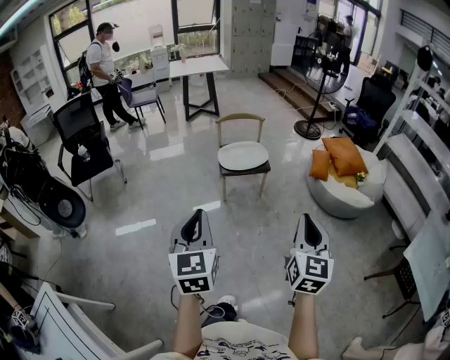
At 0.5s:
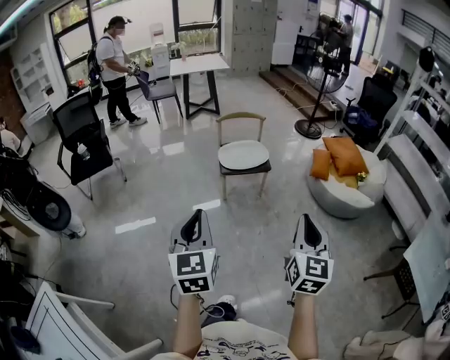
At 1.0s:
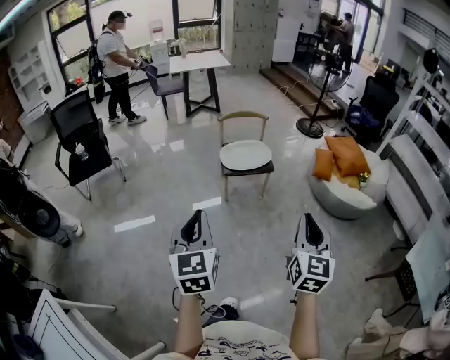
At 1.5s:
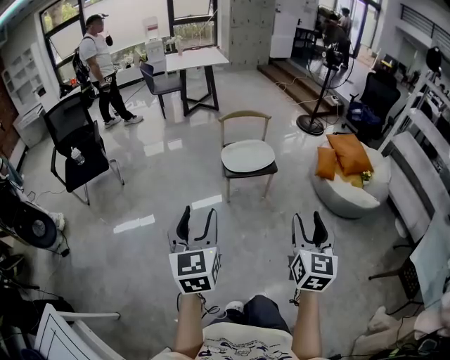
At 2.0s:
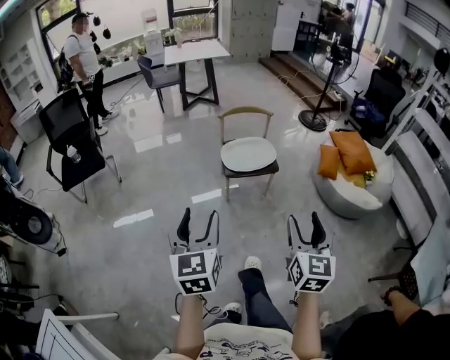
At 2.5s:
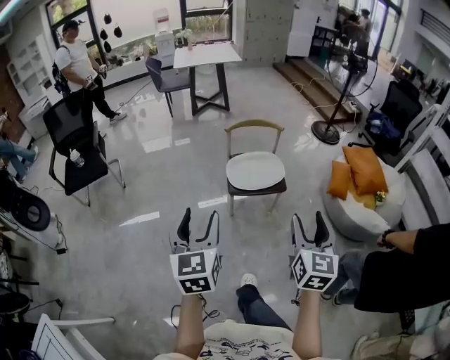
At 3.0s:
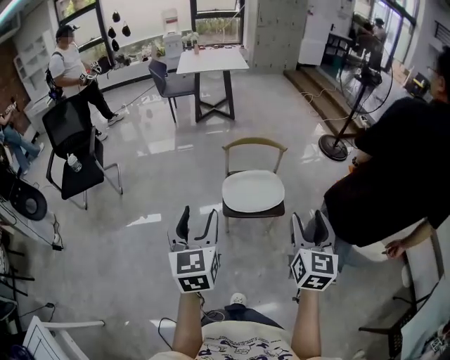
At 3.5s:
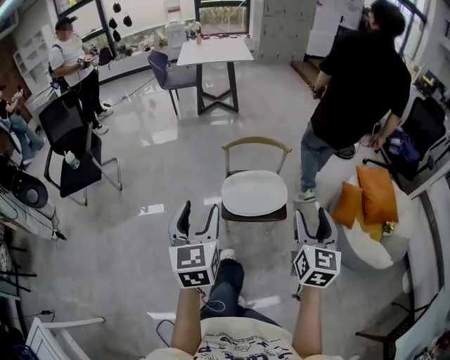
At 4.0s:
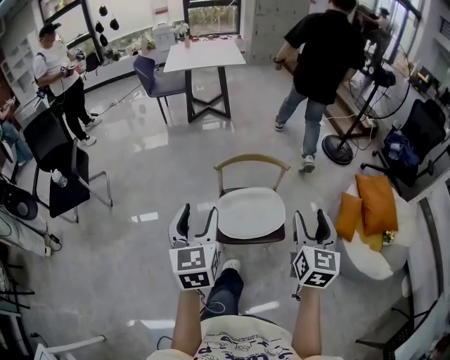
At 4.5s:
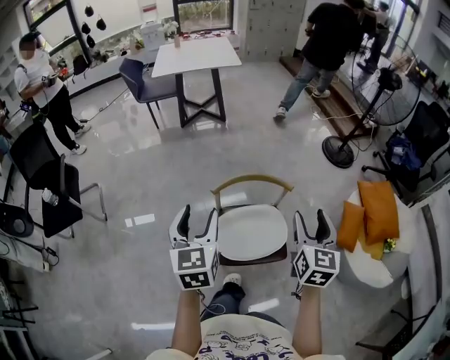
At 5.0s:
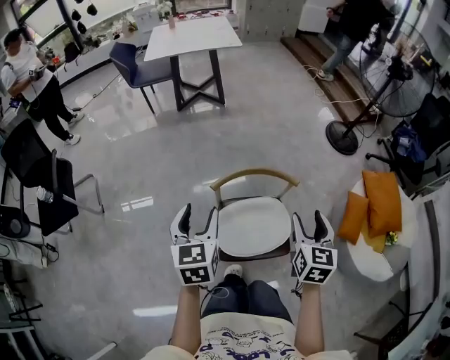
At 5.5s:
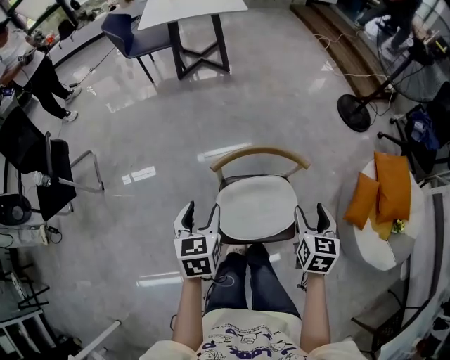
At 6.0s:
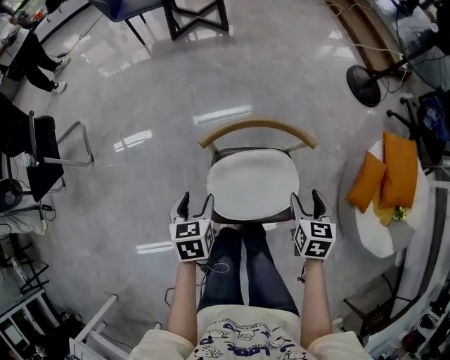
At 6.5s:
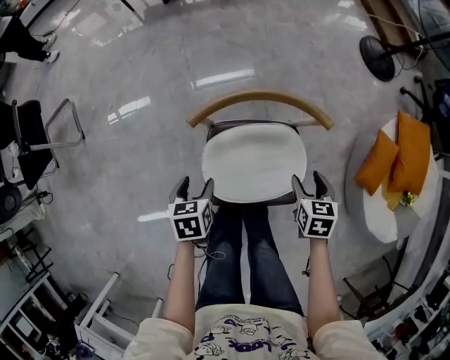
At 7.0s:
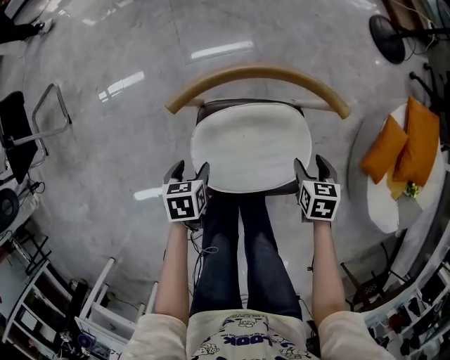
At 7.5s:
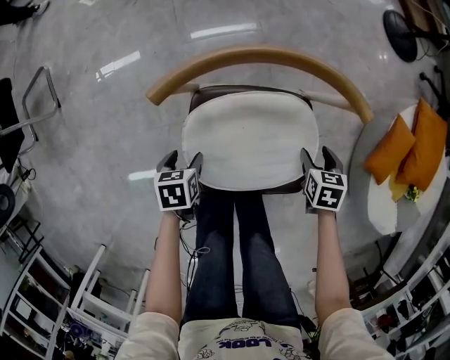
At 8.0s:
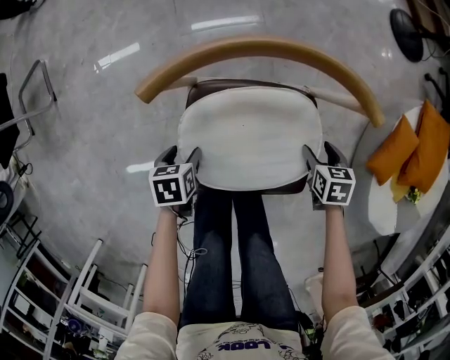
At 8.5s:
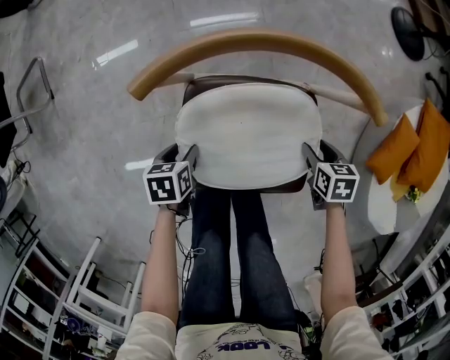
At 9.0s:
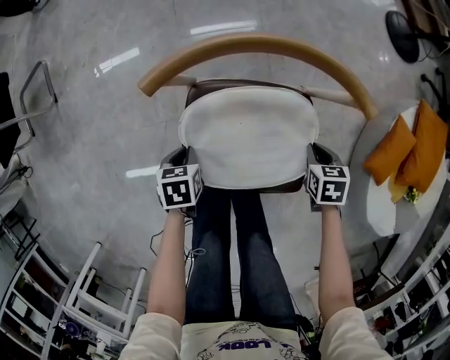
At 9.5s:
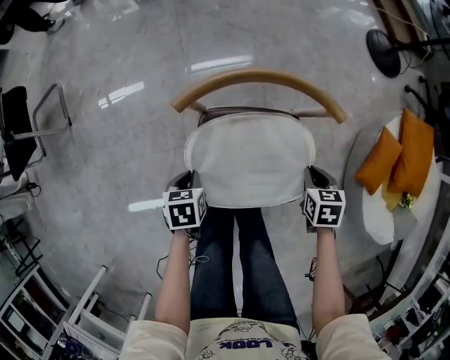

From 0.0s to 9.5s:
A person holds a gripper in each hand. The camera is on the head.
From 0.0s to 2.0s: The right gripper is displaced forward and to the left by about 25 cm, and opens. The left gripper moves forward, roughly 25 cm, and opens.
From 2.0s to 4.0s: Both grippers are carried forward, about 80 cm.
From 4.0s to 5.5s: Both grippers move forward and downward, some 40 cm. The left gripper rotates roughly 20 degrees. The right gripper rotates roughly 20 degrees.
From 5.5s to 7.5s: The grippers both shift downward by roughly 60 cm. The left gripper angles its fingers downward, by some 30 degrees; the right gripper angles its fingers downward, by approximately 30 degrees.
From 7.5s to 9.5s: The two grippers go about 15 cm upward. The right gripper closes up. The left gripper closes up.

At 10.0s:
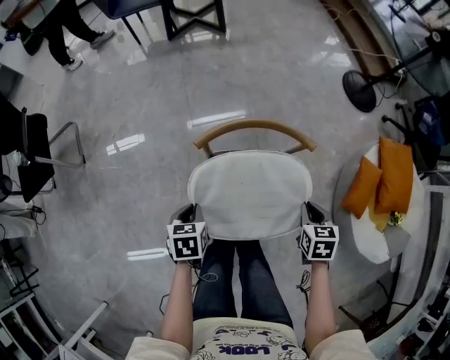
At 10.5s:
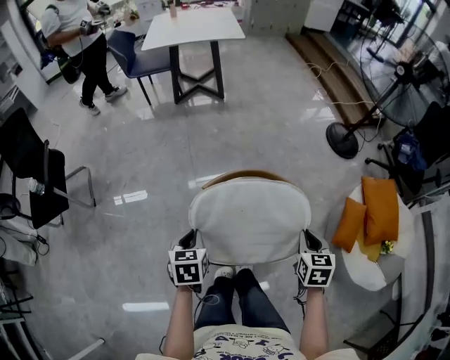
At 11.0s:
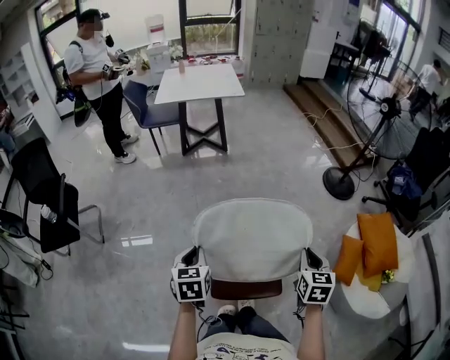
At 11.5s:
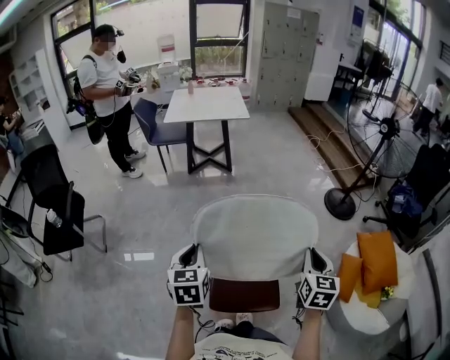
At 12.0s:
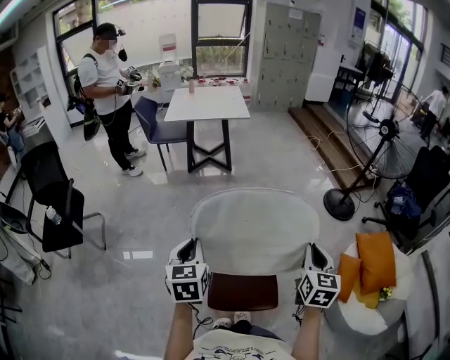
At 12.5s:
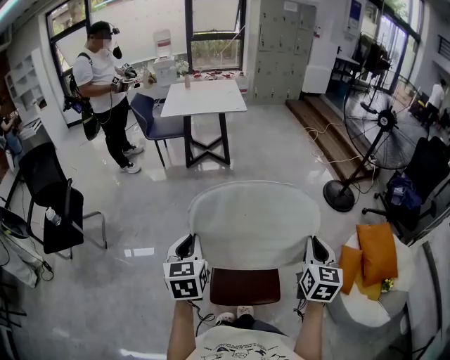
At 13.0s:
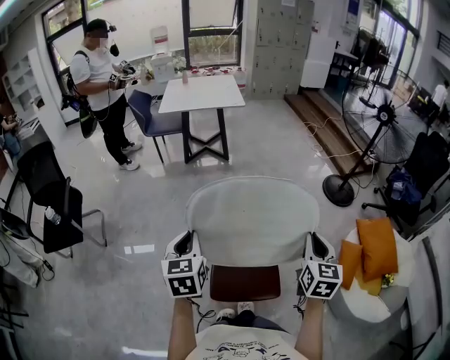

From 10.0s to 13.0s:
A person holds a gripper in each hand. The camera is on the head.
From 10.0s to 11.5s: The two grippers go about 40 cm upward. The right gripper tilts its fingers approximately 40 degrees upward; the left gripper tips its fingers upward by roughly 30 degrees.
From 11.5s to 13.0s: The grippers move only a little.

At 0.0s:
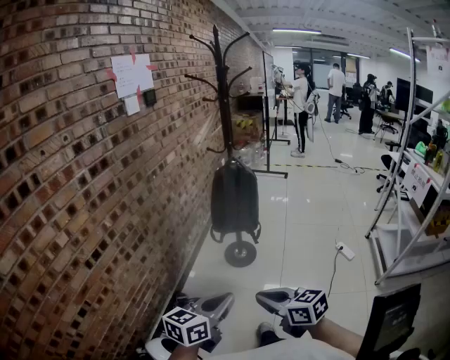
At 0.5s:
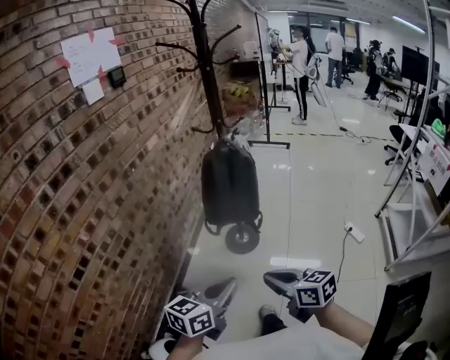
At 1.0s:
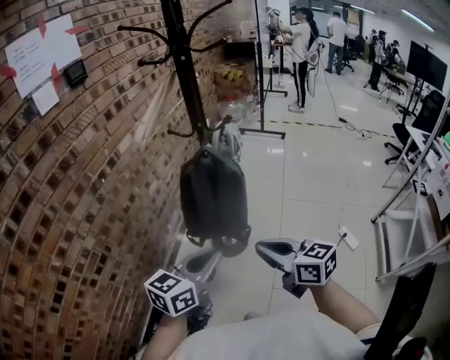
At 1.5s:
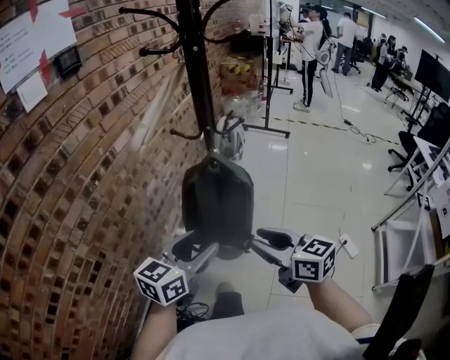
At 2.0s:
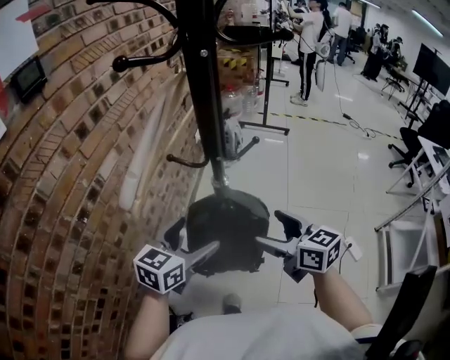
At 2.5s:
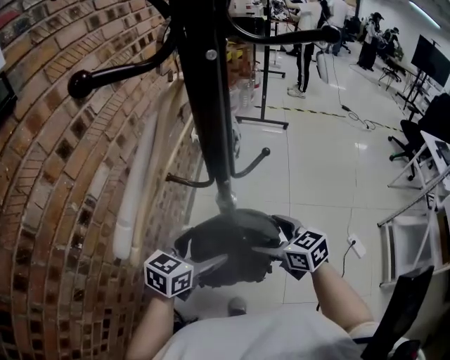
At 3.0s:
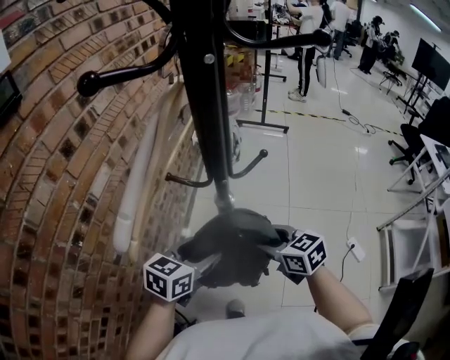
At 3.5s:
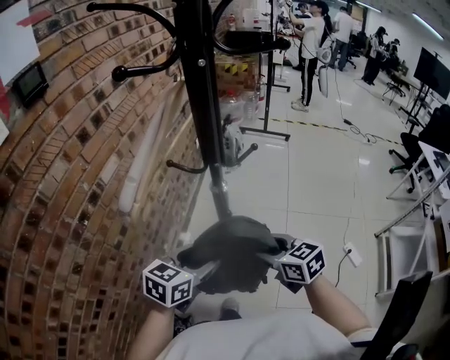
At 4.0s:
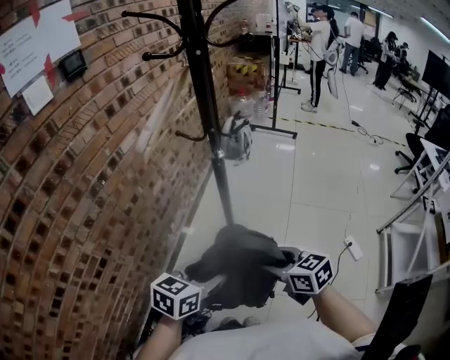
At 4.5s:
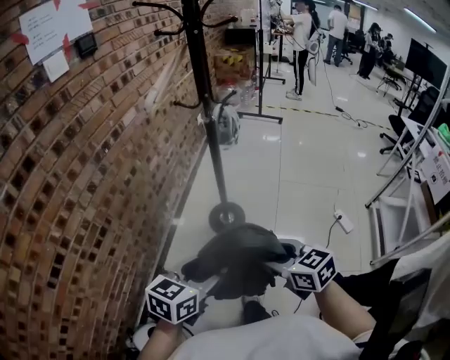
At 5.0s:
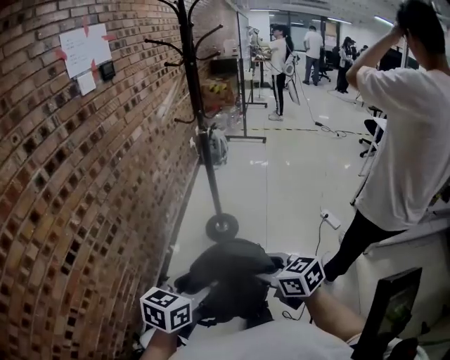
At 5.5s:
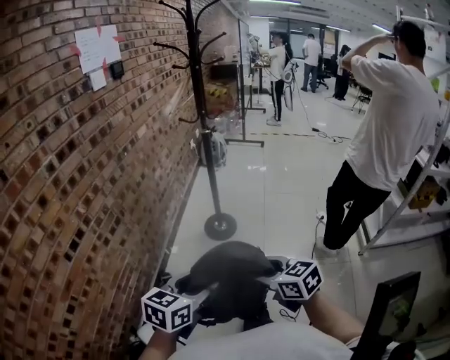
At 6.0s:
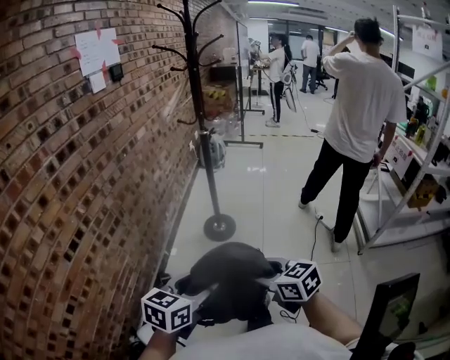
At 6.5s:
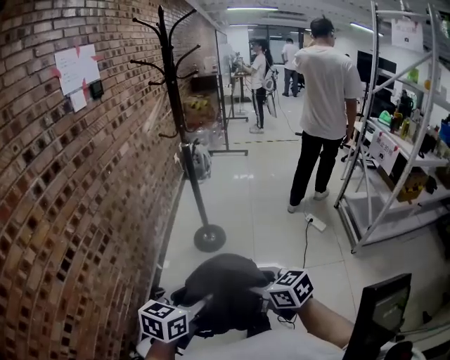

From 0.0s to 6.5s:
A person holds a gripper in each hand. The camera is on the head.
From 0.0s to 2.0s: The two grippers travel together, forward, roughly 70 cm. The right gripper opens, while the left gripper opens.
From 2.0s to 4.5s: Both grippers move backward, roughly 40 cm. The left gripper closes up, while the right gripper closes.
From 4.5s to 6.5s: The grippers both shift backward by about 25 cm.

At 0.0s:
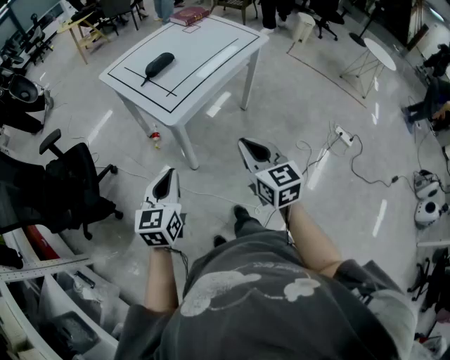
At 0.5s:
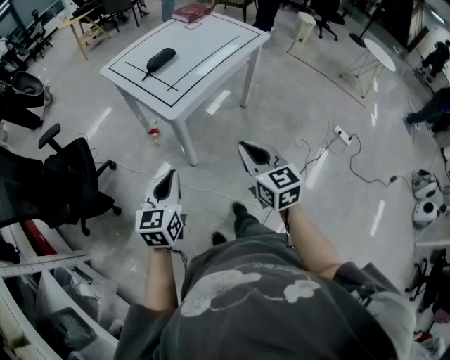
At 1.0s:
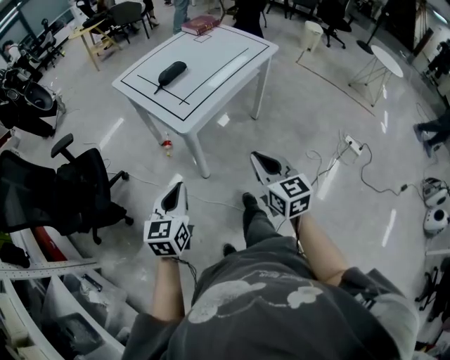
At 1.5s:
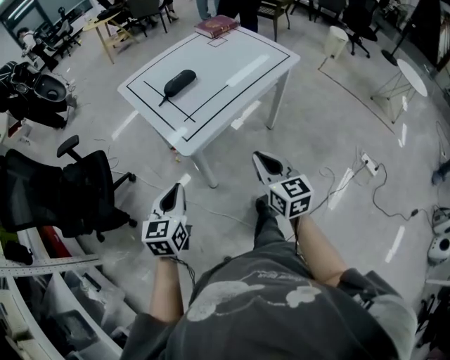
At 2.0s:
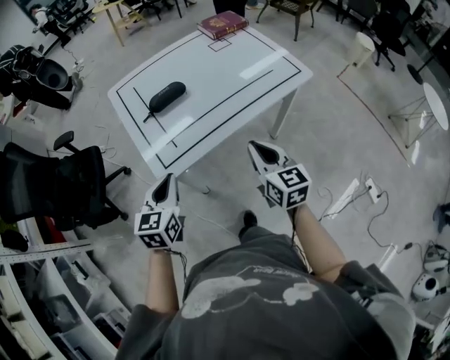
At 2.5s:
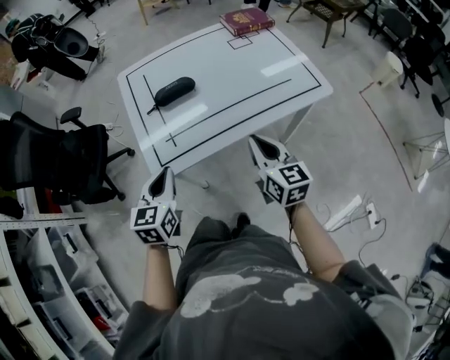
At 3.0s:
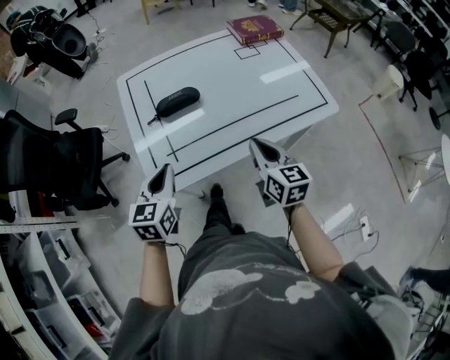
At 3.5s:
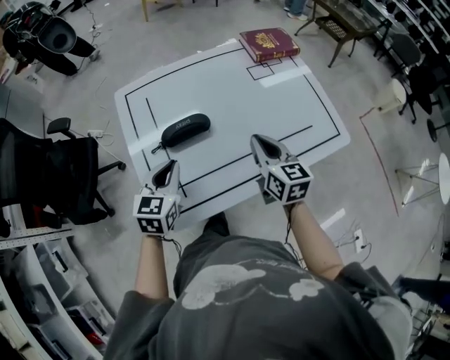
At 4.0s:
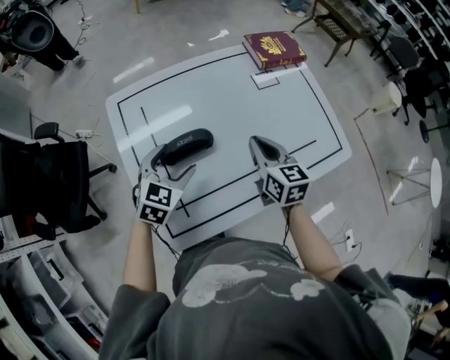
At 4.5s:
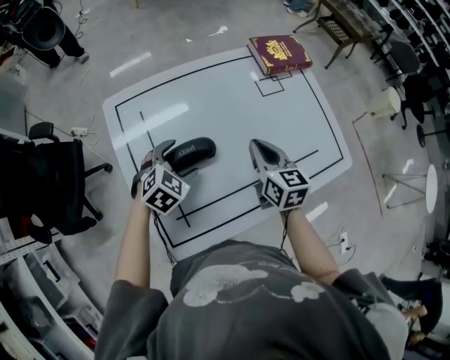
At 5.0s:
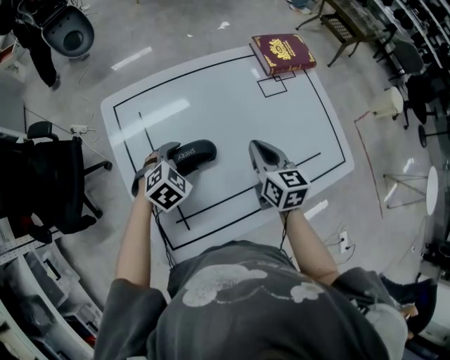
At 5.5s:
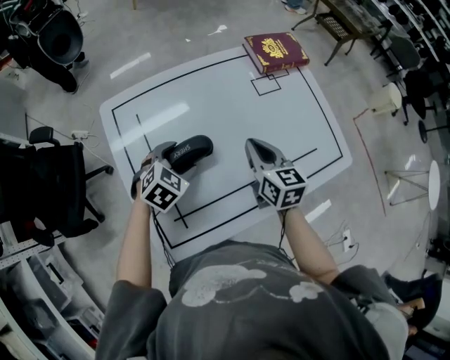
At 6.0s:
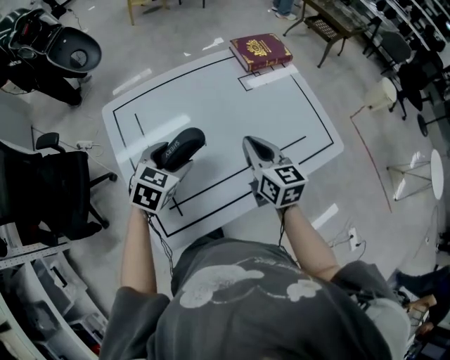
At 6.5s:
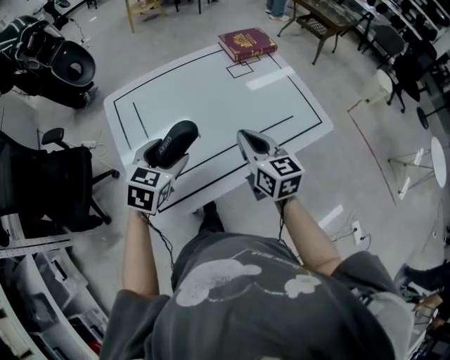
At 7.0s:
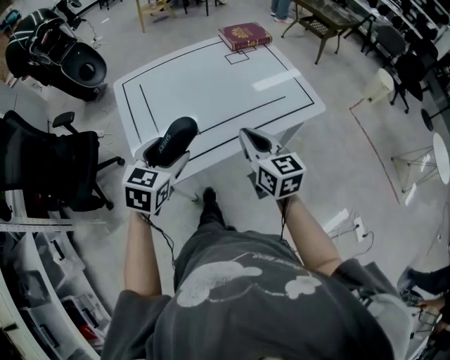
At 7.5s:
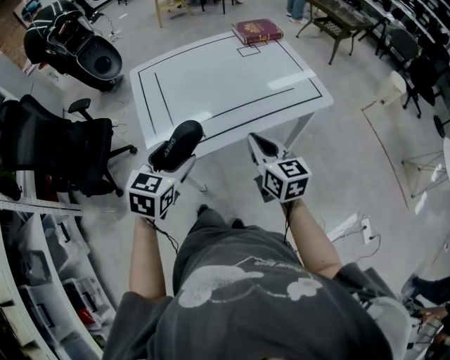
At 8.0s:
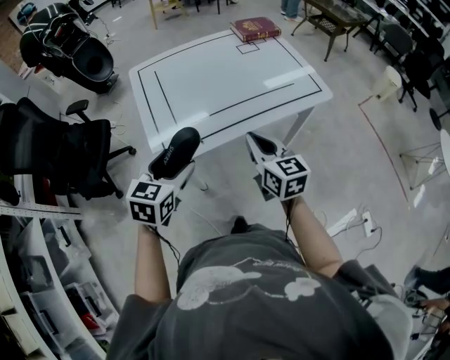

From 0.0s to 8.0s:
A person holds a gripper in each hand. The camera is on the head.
From 0.0s to 2.0s: The two grippers go some 25 cm forward.
From 2.0s to 4.0s: Both grippers travel together forward, roughly 30 cm. The left gripper turns by approximately 20 degrees, and opens up.
From 4.0s to 6.0s: The left gripper goes downward and returns, approximately 10 cm each way.
From 6.0s to 8.0s: Both grippers move backward, about 30 cm.
